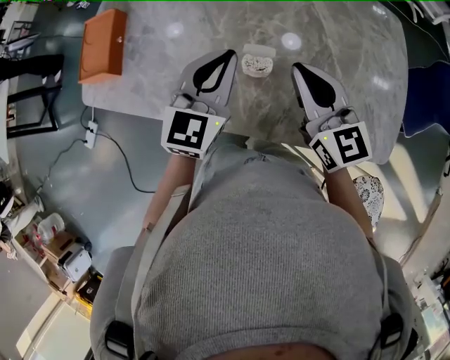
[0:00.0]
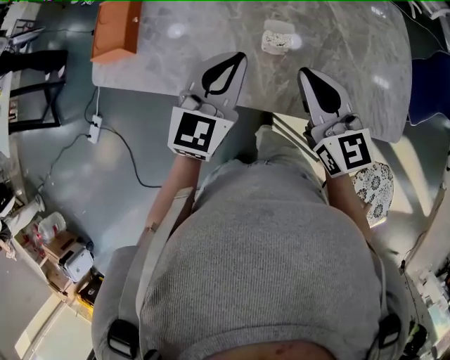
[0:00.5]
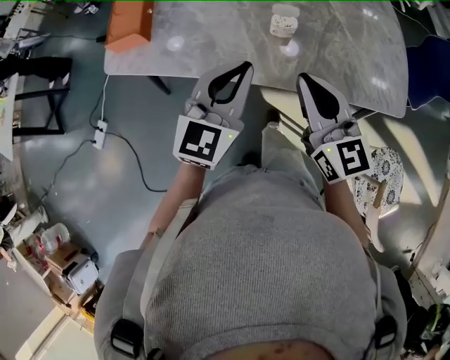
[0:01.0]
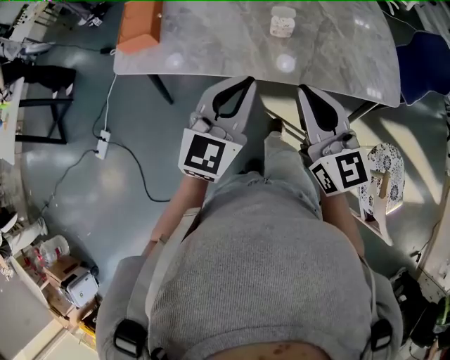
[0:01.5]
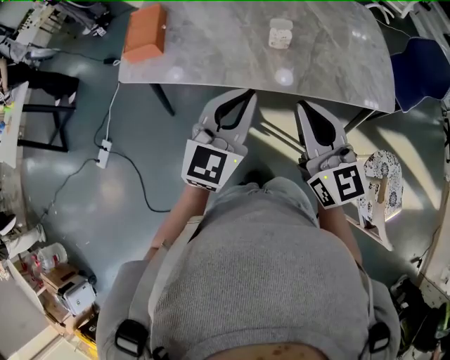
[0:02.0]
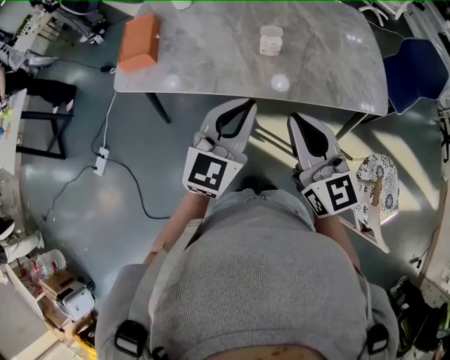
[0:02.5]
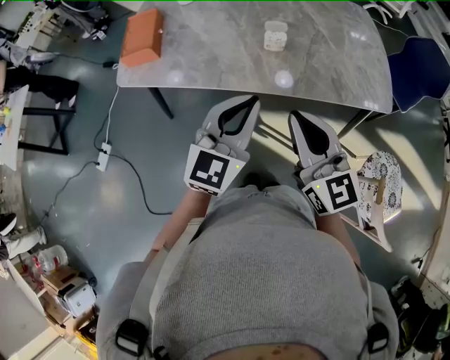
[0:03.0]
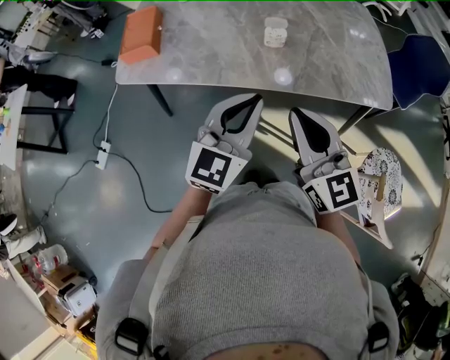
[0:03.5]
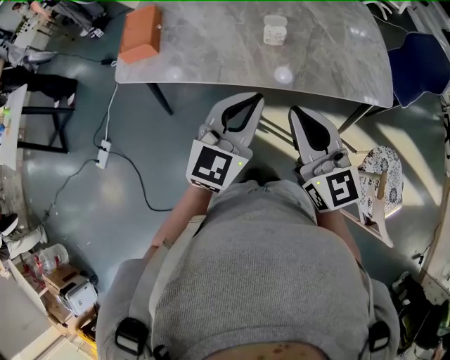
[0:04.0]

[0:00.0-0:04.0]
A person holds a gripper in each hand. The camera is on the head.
0:00.0 to 0:02.0: The grippers both shift backward by approximately 25 cm.
0:02.0 to 0:04.0: The grippers stay close to where they were, moving slightly.

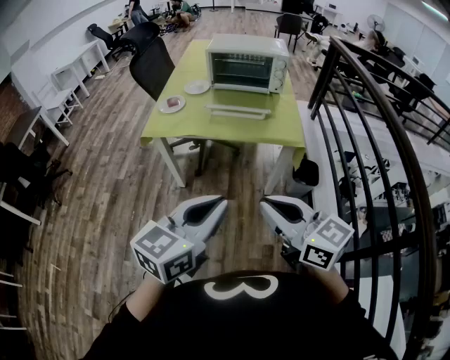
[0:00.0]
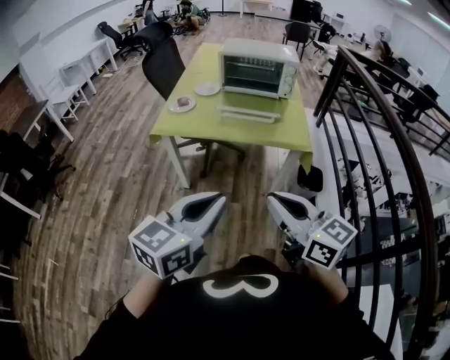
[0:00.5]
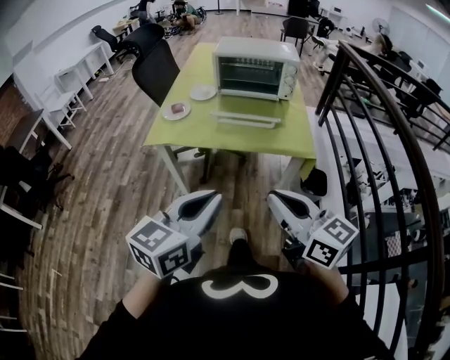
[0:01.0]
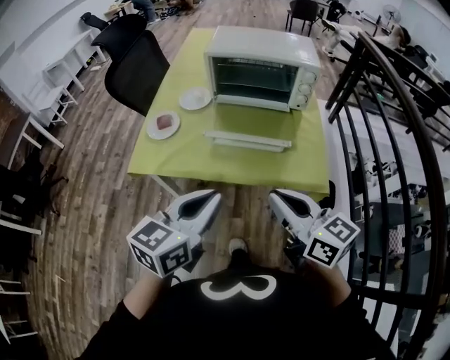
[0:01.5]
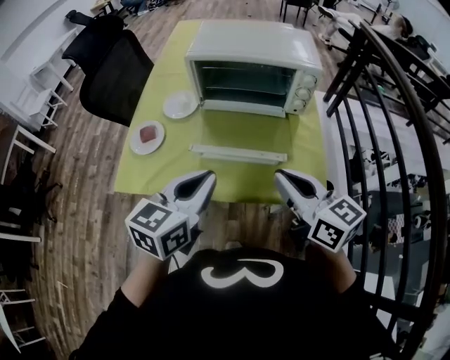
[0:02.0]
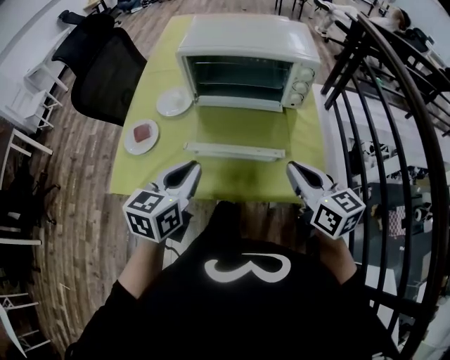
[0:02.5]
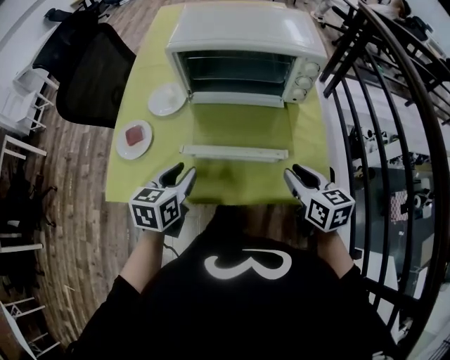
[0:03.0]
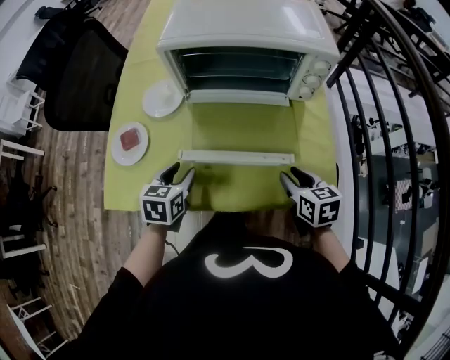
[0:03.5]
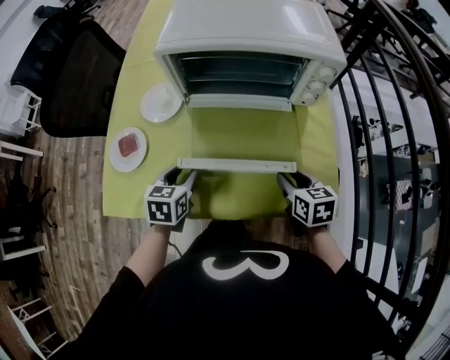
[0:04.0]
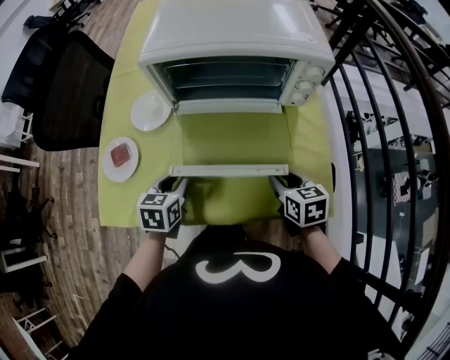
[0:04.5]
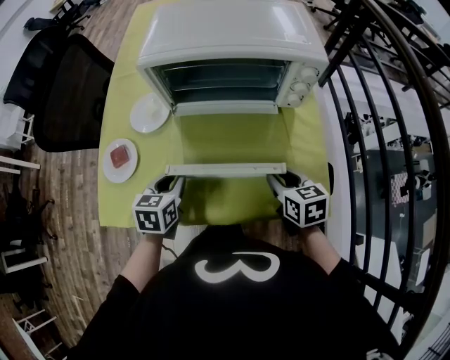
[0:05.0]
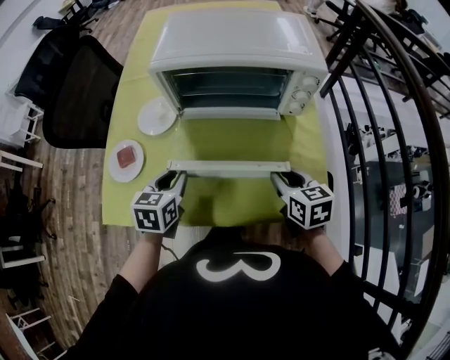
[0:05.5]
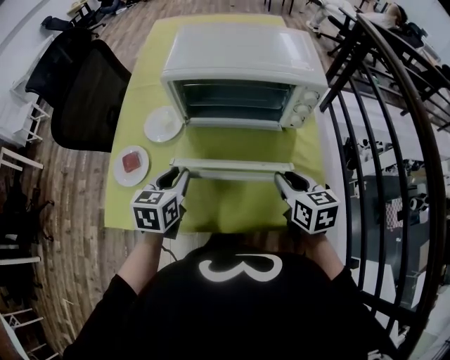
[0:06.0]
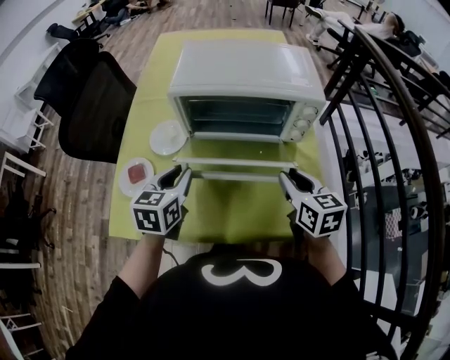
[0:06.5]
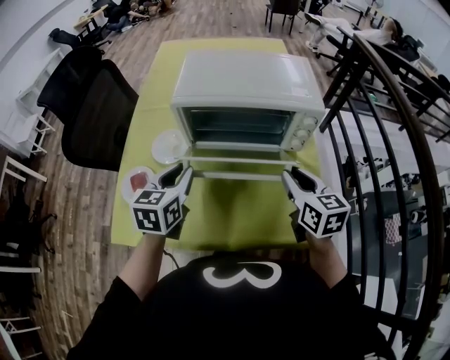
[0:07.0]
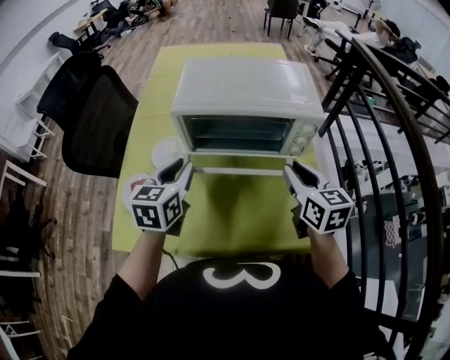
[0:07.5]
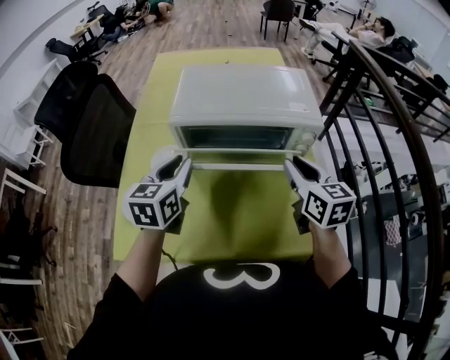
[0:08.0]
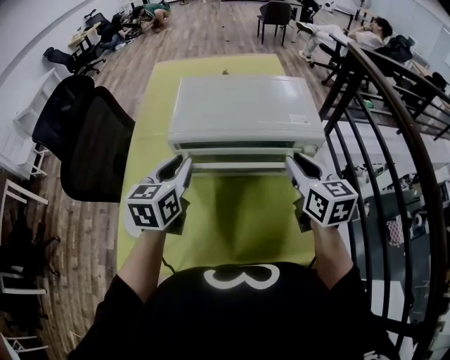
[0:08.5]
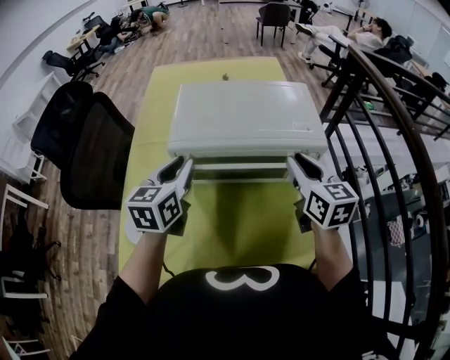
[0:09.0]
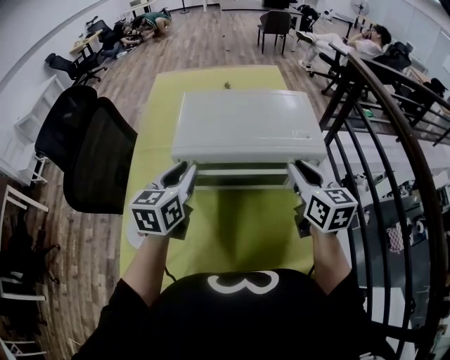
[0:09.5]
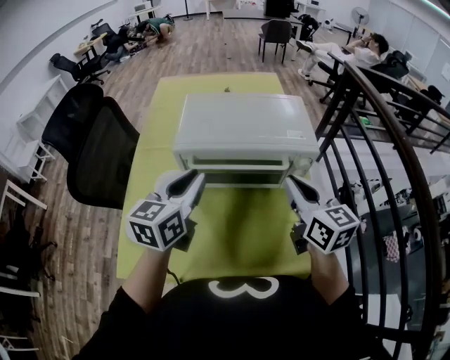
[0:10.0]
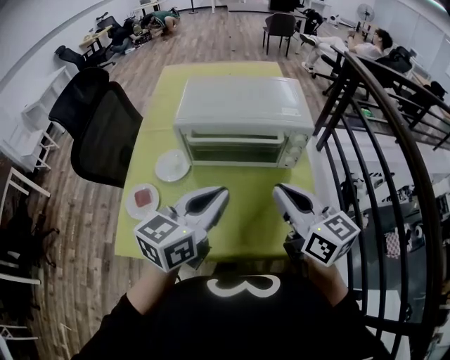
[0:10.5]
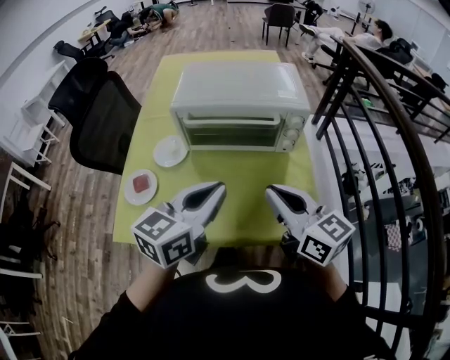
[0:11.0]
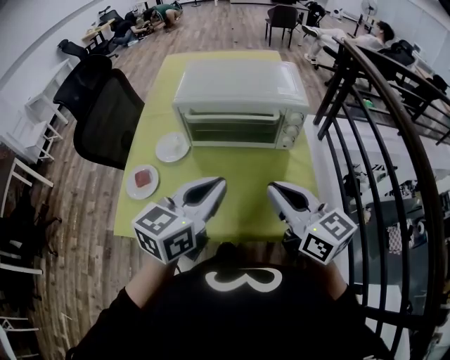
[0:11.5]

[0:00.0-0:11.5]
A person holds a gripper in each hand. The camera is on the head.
0:00.0 to 0:02.0: The two grippers travel together, forward, some 50 cm.
0:02.0 to 0:04.0: The grippers both shift downward and forward by roughly 25 cm. The left gripper rotates approximately 30 degrees, and opens. Meanwhile the right gripper tilts its fingers roughly 30 degrees downward, and opens up.
0:04.0 to 0:06.0: Both grippers travel together upward, roughly 10 cm.
0:06.0 to 0:07.5: The grippers both shift upward and forward by roughly 10 cm.
0:07.5 to 0:09.5: The two grippers go about 10 cm forward.
0:09.5 to 0:11.5: The right gripper moves backward, about 25 cm, changes its angle by some 30 degrees, and closes, while the left gripper travels backward and to the right by some 25 cm, and closes up.

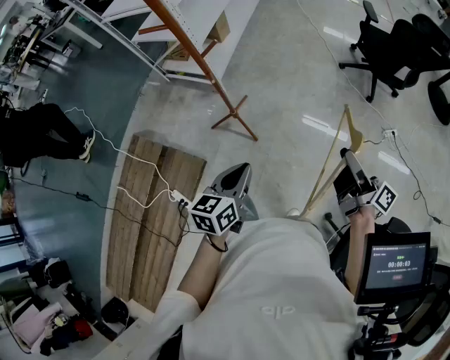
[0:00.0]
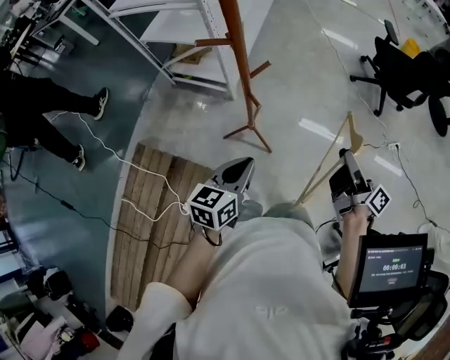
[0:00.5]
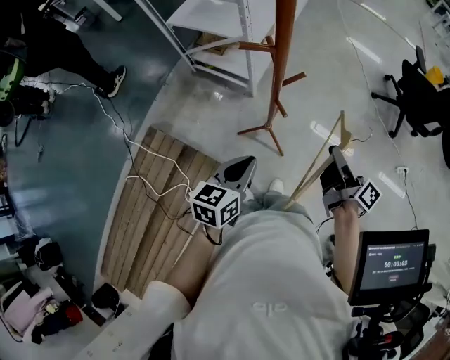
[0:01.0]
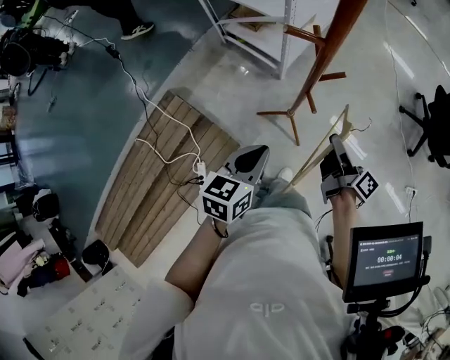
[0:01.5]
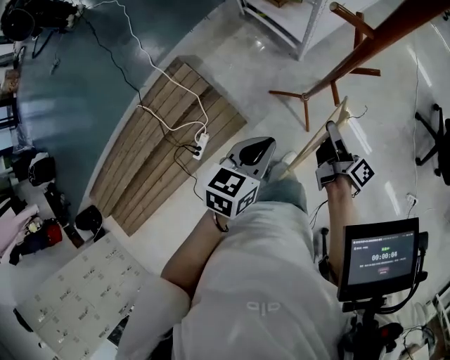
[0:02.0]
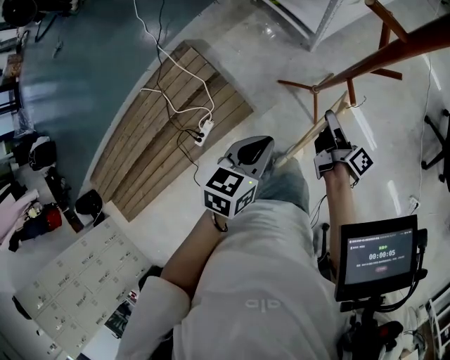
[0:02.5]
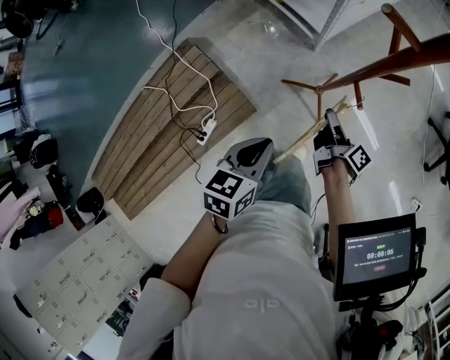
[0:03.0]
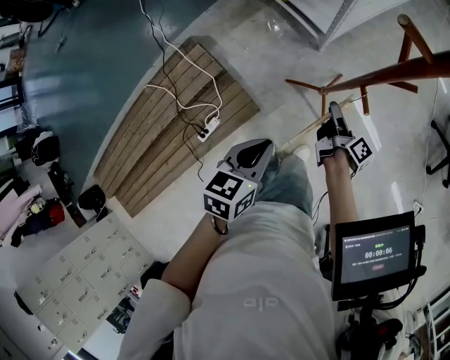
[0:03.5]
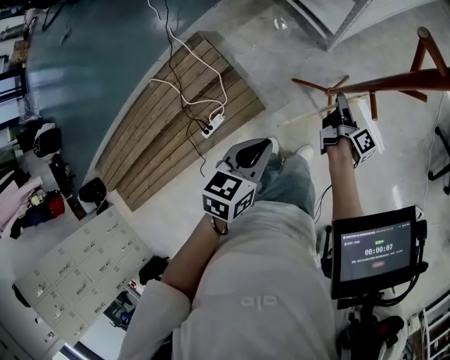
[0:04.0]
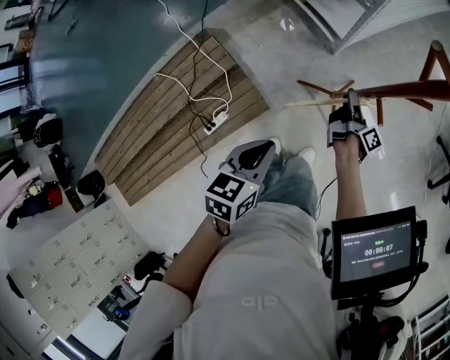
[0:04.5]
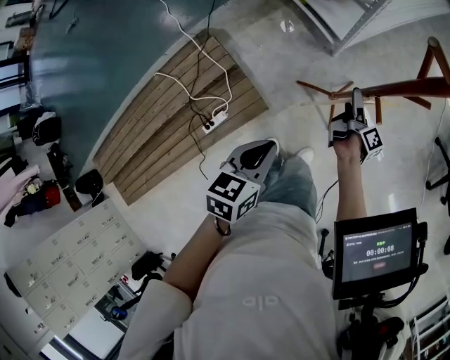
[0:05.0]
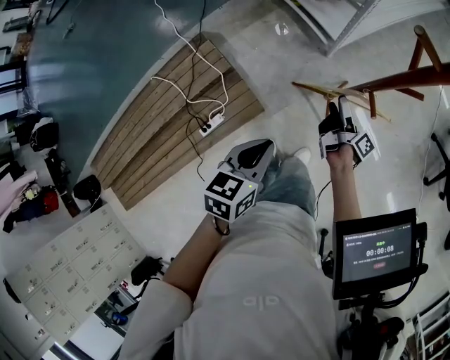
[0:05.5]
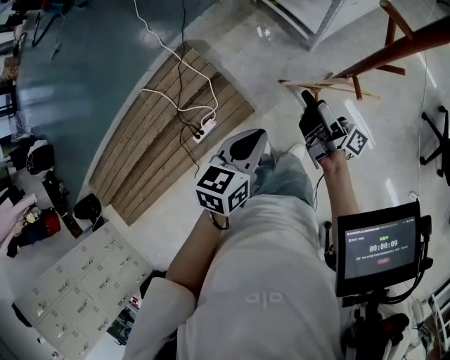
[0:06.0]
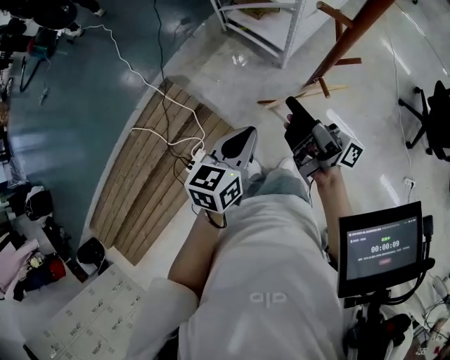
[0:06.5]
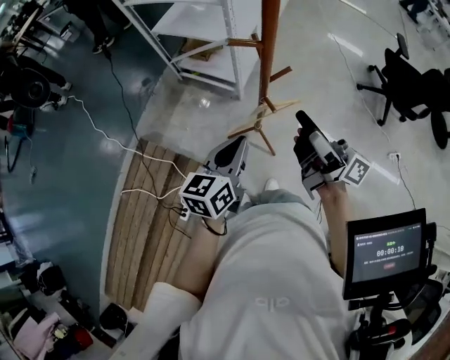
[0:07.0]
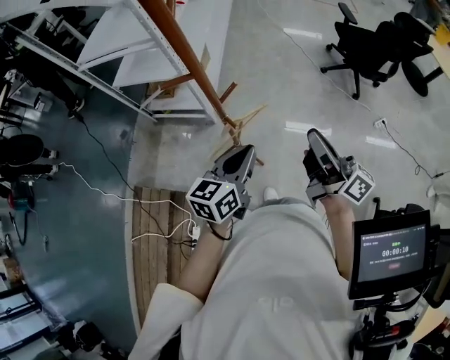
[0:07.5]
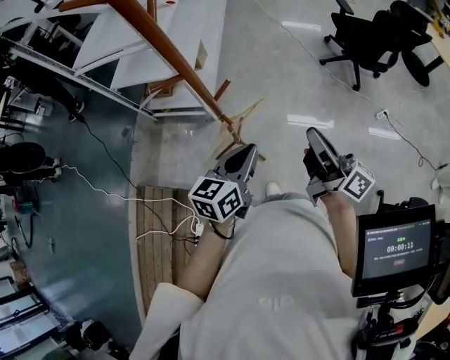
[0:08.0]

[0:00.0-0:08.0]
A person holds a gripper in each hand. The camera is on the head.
0:00.0 to 0:02.0: The left gripper goes upward and returns, some 10 cm each way.
0:02.0 to 0:04.0: The left gripper shifts by some 10 cm.
0:04.0 to 0:06.0: The left gripper reaches approximately 10 cm downward, then returns.
0:06.0 to 0:08.0: The left gripper moves approximately 25 cm, and rotates about 40 degrees.

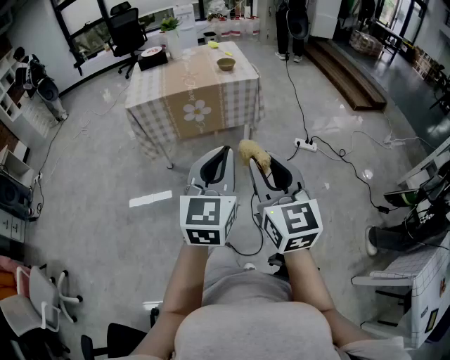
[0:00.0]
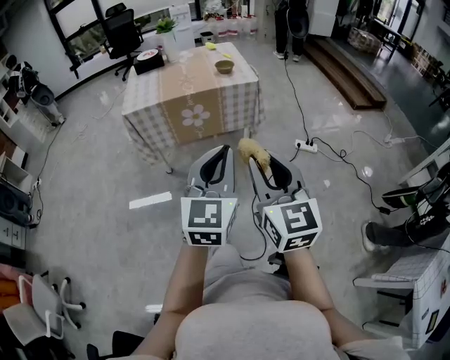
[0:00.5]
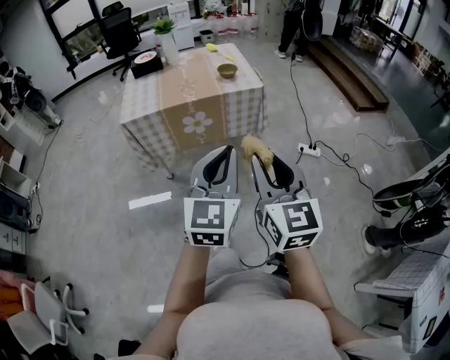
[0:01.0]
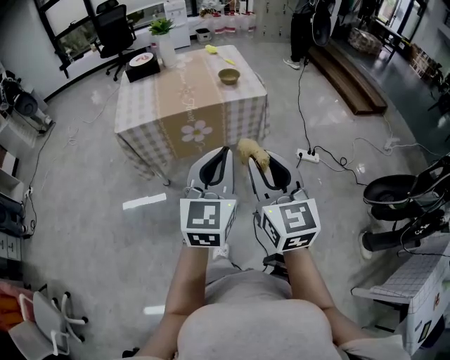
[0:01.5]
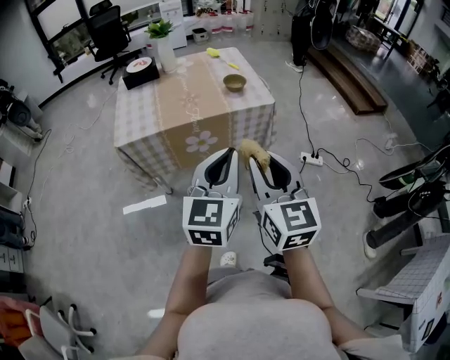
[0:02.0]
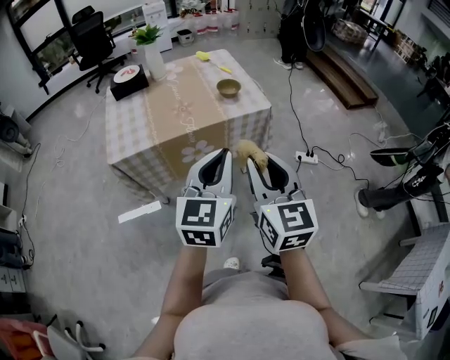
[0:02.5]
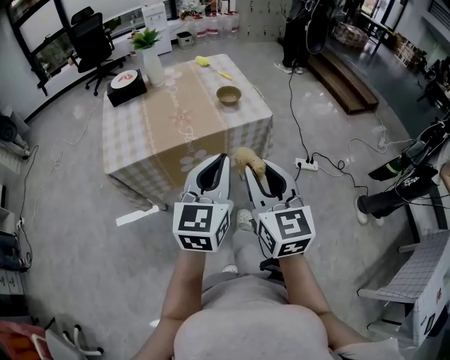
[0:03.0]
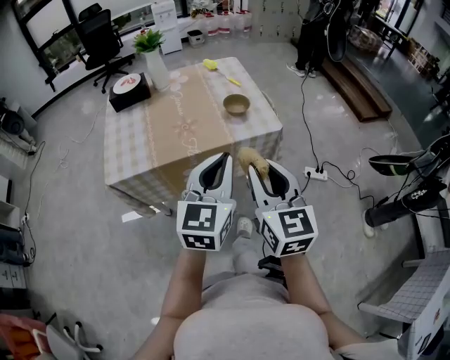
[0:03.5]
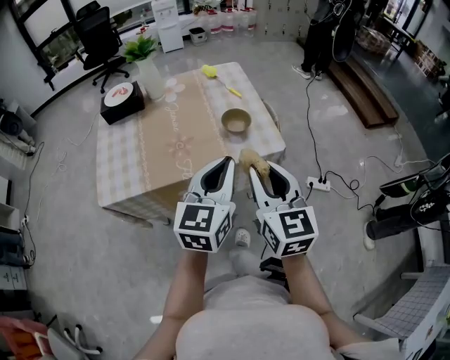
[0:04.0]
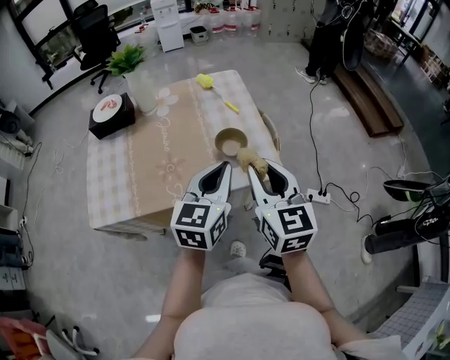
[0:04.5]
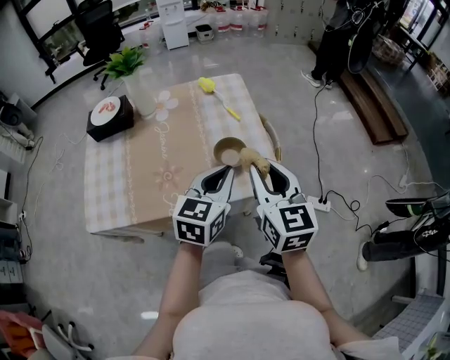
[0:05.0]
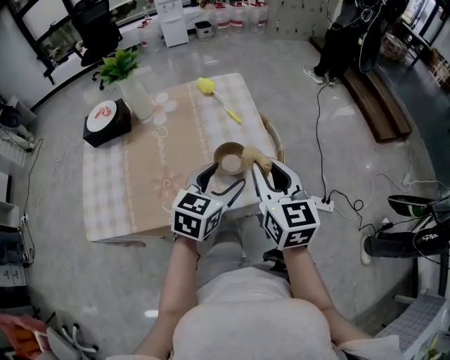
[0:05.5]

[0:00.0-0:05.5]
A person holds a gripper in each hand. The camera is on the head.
0:00.0 to 0:02.0: The two grippers go roughly 25 cm forward.
0:02.0 to 0:03.5: The two grippers go some 15 cm forward.
0:03.5 to 0:05.5: The right gripper moves forward, roughly 30 cm, while the left gripper is displaced forward and downward by some 30 cm, rotates about 20 degrees, and opens up.
